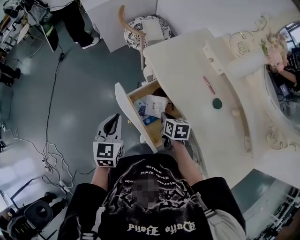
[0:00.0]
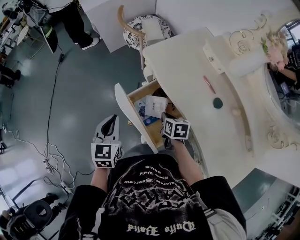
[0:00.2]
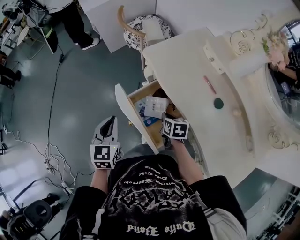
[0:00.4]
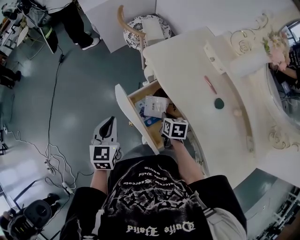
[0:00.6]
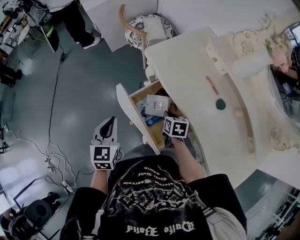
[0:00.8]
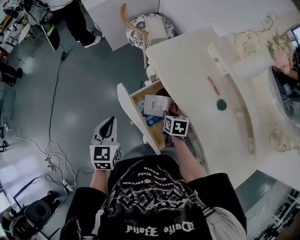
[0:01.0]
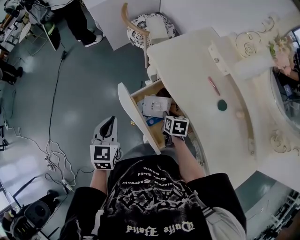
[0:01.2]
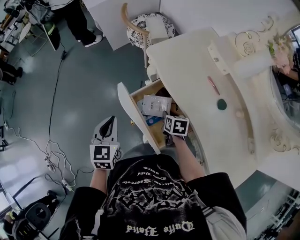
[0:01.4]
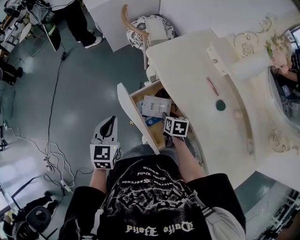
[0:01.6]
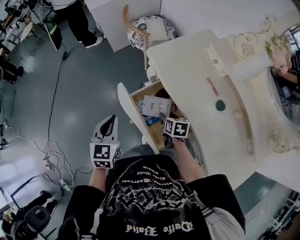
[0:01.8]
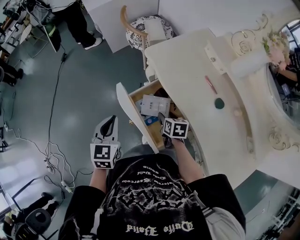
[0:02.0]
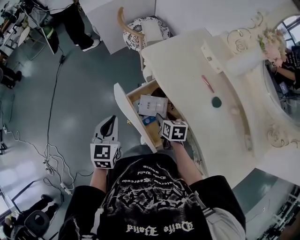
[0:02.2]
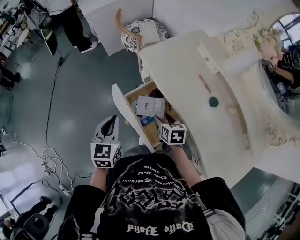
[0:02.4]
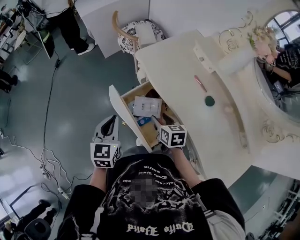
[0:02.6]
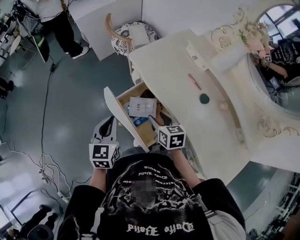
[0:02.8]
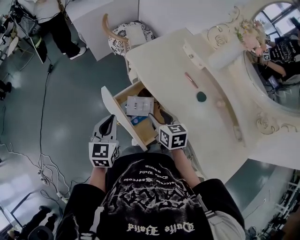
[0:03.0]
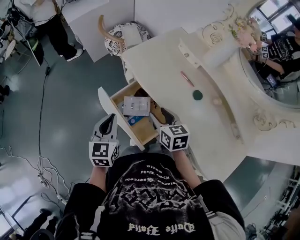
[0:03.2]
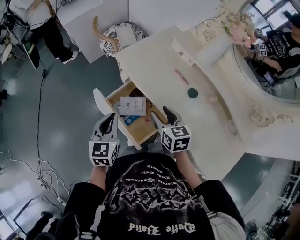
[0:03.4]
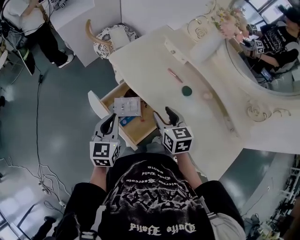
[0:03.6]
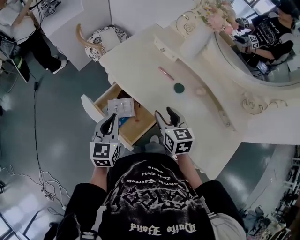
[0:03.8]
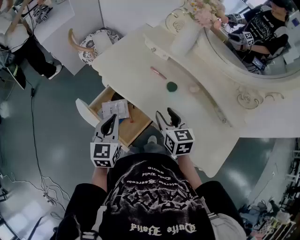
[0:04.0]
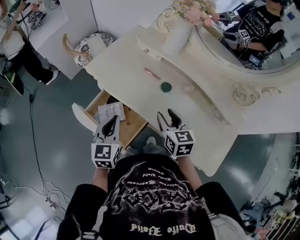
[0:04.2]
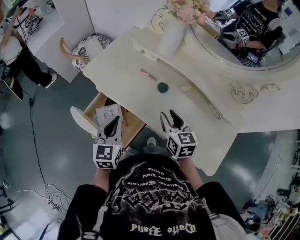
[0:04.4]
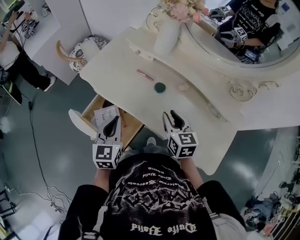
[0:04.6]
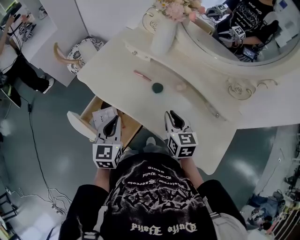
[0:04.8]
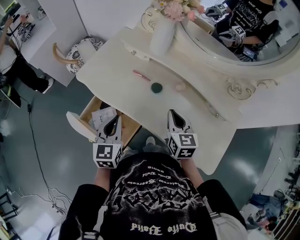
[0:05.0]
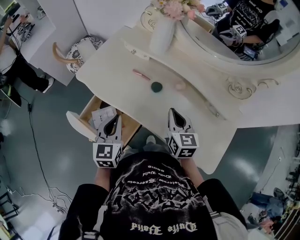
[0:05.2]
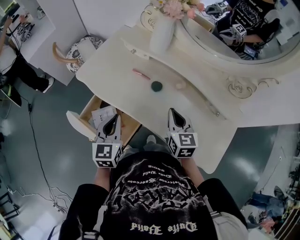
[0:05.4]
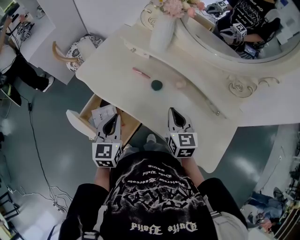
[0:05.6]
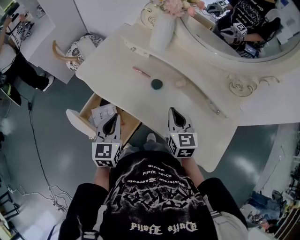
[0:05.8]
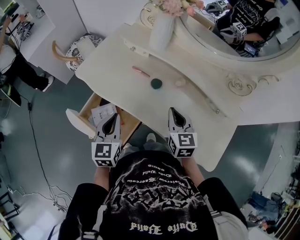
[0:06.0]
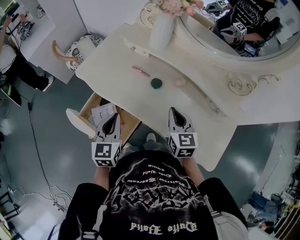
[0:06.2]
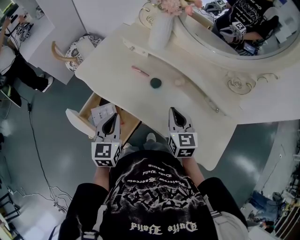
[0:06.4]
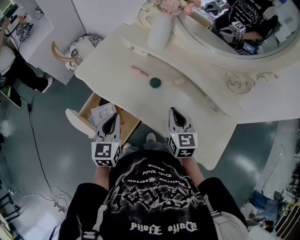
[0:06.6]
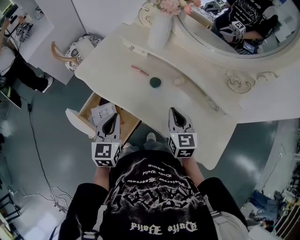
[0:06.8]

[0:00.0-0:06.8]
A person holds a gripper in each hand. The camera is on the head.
0:00.0 to 0:01.4: The right gripper ends up about 5 cm from where it was, and opens.
0:01.4 to 0:02.8: The left gripper goes roughly 5 cm to the right. The right gripper shifts roughly 10 cm upward, and opens.
0:02.8 to 0:04.0: The left gripper travels to the right by about 15 cm; the right gripper goes roughly 20 cm to the right and upward, and changes its angle by about 20 degrees.
0:04.0 to 0:05.4: Both grippers travel together to the right, approximately 10 cm. The right gripper closes up.
0:05.4 to 0:06.8: The grippers move only a little.

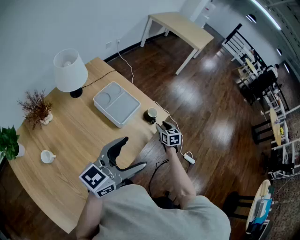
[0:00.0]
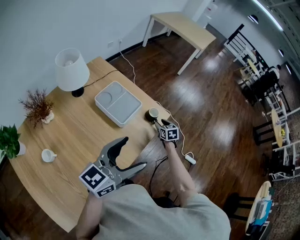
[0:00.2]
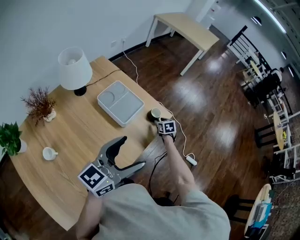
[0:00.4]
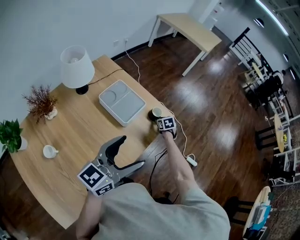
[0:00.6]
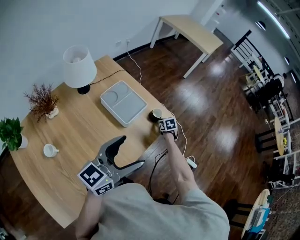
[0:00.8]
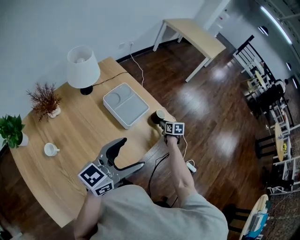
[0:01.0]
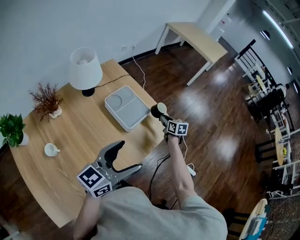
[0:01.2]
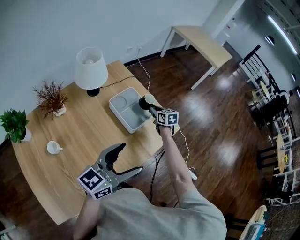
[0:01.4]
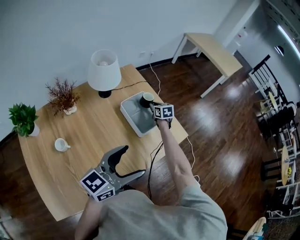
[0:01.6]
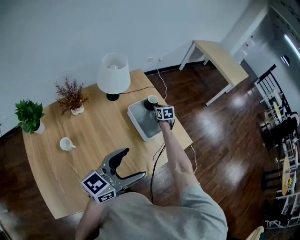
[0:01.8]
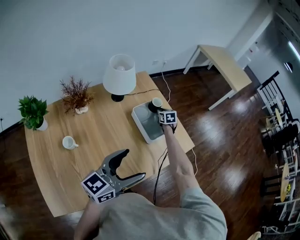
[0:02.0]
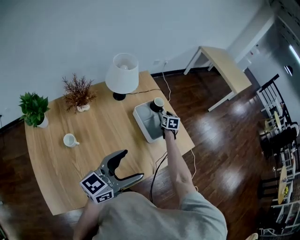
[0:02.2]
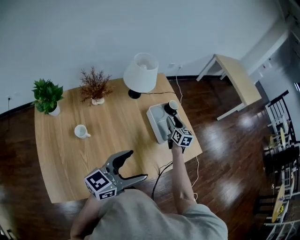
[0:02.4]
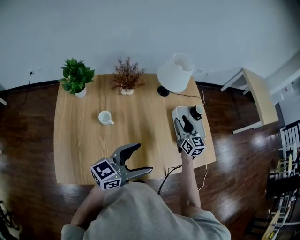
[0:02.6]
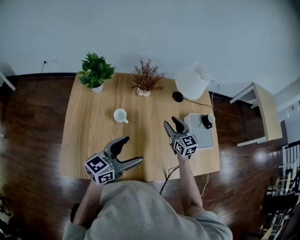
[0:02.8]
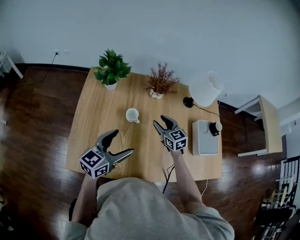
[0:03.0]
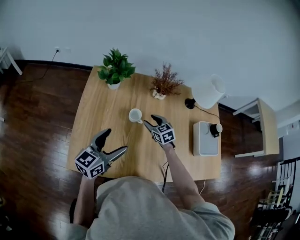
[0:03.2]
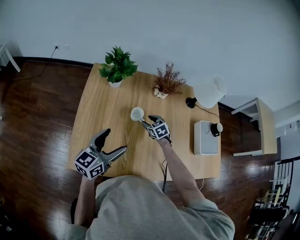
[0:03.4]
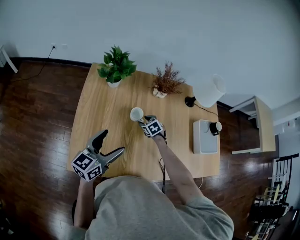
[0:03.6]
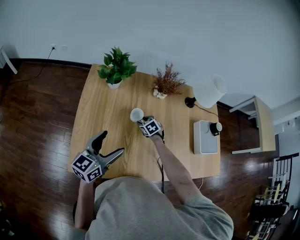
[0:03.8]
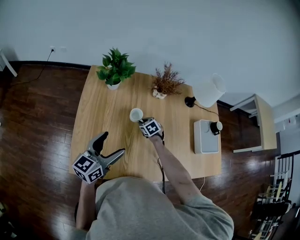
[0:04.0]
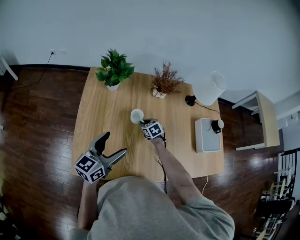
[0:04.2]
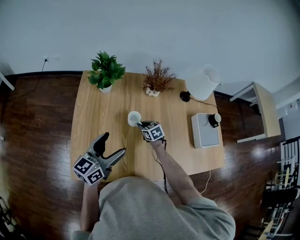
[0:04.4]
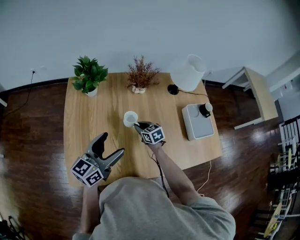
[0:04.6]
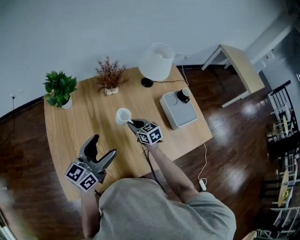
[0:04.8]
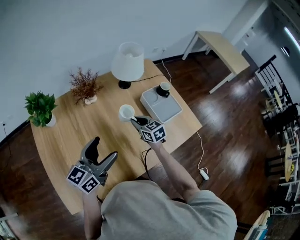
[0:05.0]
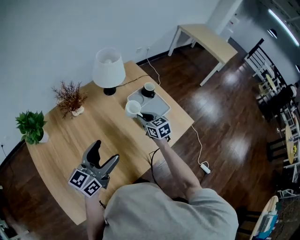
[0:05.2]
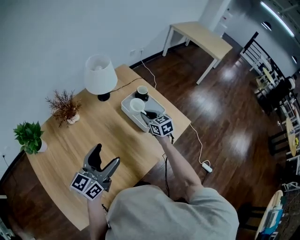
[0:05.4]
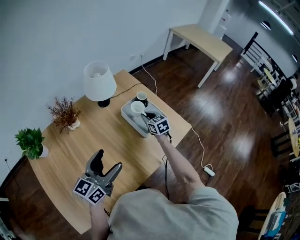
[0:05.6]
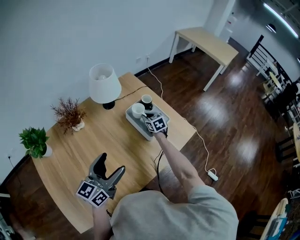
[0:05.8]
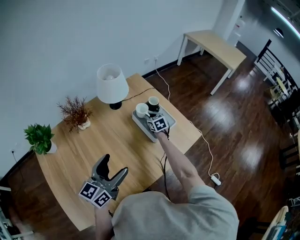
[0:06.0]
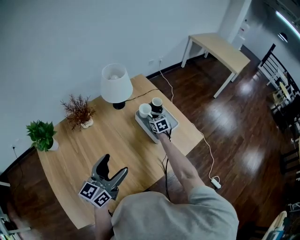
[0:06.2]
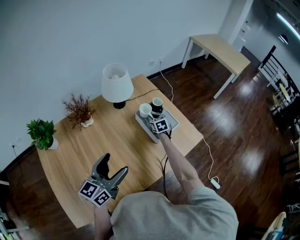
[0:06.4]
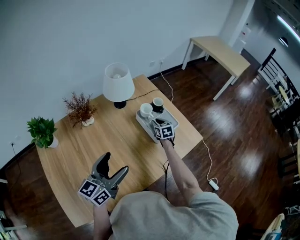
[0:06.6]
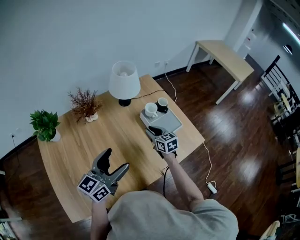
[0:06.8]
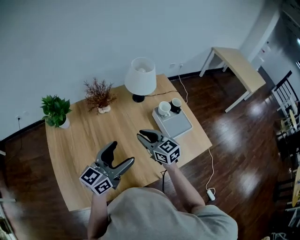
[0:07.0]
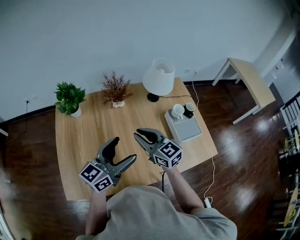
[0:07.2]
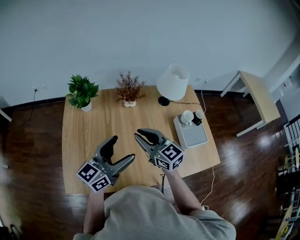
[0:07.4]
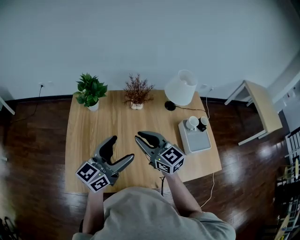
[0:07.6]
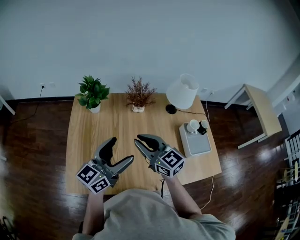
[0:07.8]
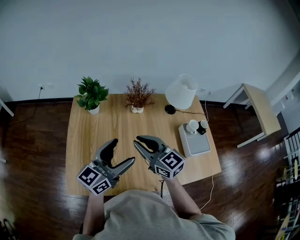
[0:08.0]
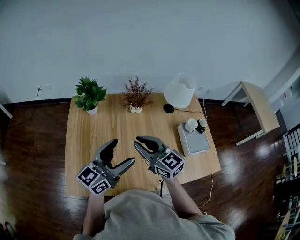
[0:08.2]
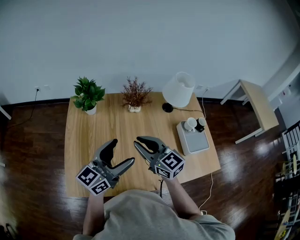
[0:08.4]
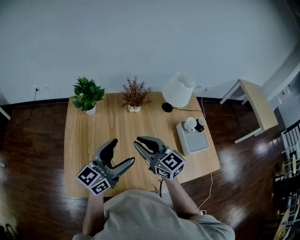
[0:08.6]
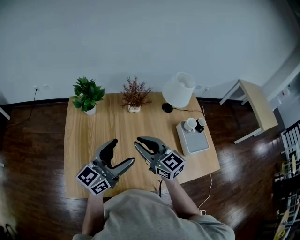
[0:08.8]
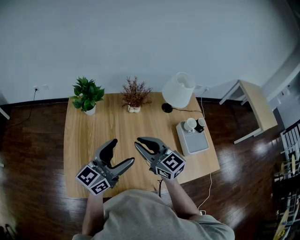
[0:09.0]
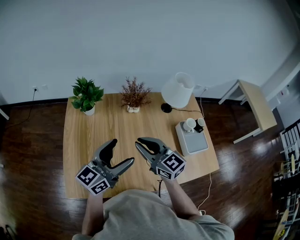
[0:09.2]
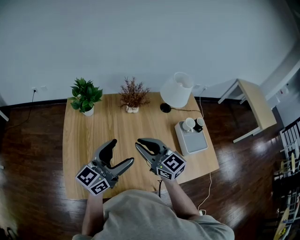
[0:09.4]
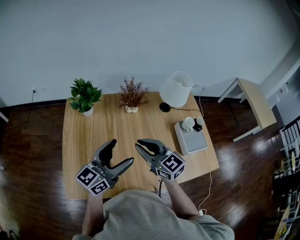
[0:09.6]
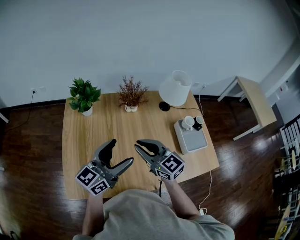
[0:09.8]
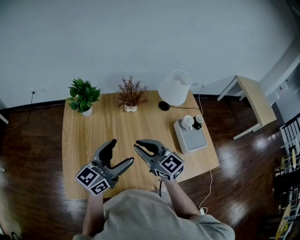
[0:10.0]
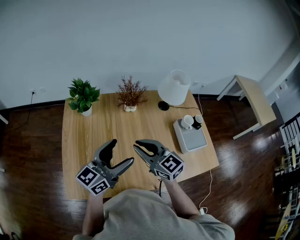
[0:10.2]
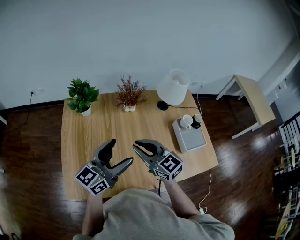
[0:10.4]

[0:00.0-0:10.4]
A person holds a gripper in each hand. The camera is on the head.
0:00.0 to 0:01.4: The right gripper travels to the left and forward by roughly 20 cm, swivels approximately 20 degrees, and closes its fingers.
0:01.4 to 0:03.0: The left gripper ends up about 40 cm from where it was, and changes its angle by roughly 50 degrees; the right gripper swings up and down, some 15 cm each way, with 2 reversals, rotates roughly 60 degrees, and opens up.
0:03.0 to 0:04.4: The left gripper shifts roughly 5 cm to the left, while the right gripper travels downward and to the left by approximately 15 cm, turns by about 20 degrees, and closes its fingers.
0:04.4 to 0:06.0: The left gripper changes place by some 30 cm, and swivels about 30 degrees; the right gripper moves some 50 cm, and turns by approximately 40 degrees.
0:06.0 to 0:07.4: The right gripper shifts by approximately 50 cm, and turns by roughly 60 degrees. Meanwhile the left gripper ends up roughly 15 cm from where it was.
0:07.4 to 0:10.4: The grippers stay close to where they were, moving slightly.

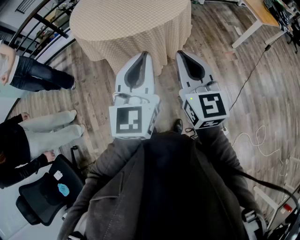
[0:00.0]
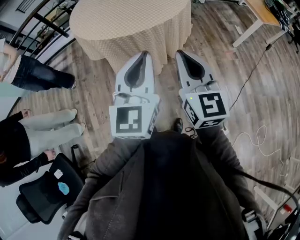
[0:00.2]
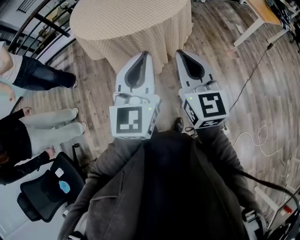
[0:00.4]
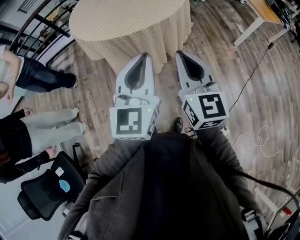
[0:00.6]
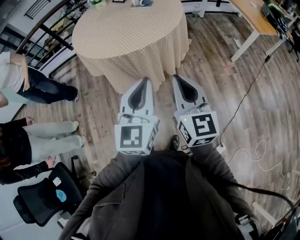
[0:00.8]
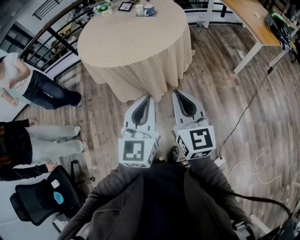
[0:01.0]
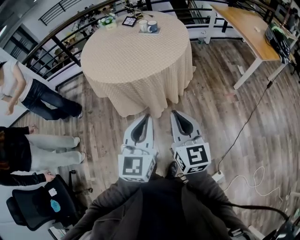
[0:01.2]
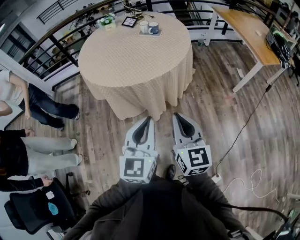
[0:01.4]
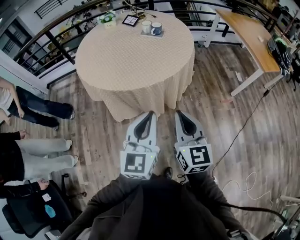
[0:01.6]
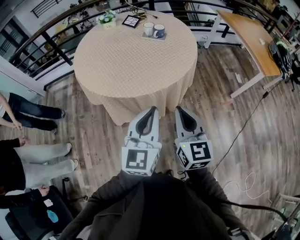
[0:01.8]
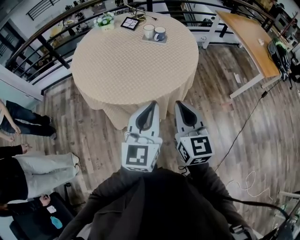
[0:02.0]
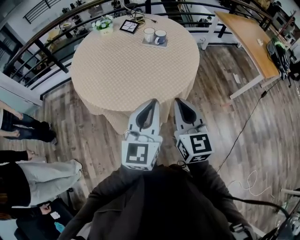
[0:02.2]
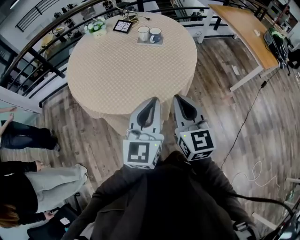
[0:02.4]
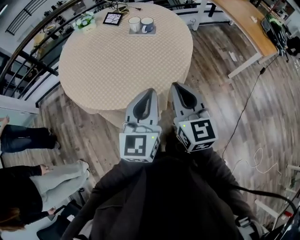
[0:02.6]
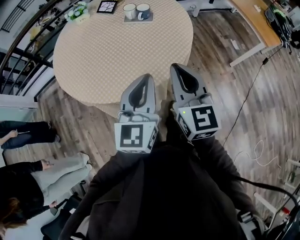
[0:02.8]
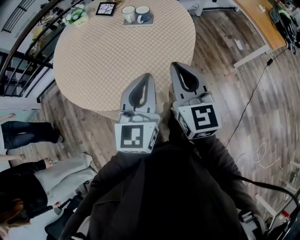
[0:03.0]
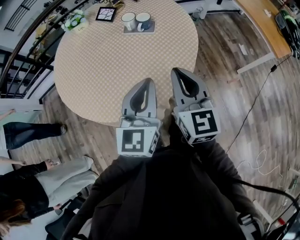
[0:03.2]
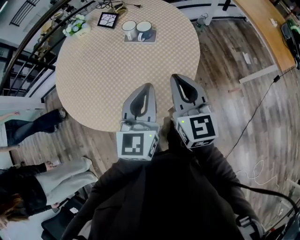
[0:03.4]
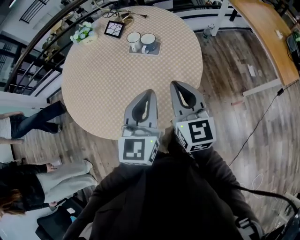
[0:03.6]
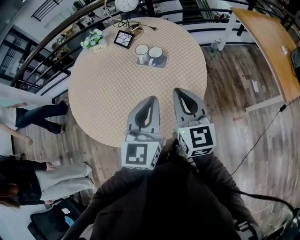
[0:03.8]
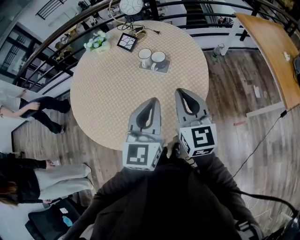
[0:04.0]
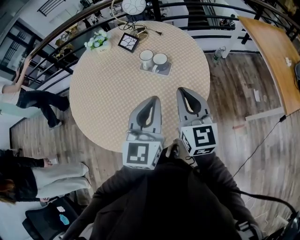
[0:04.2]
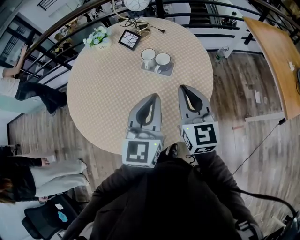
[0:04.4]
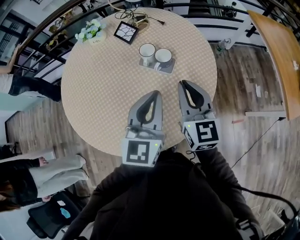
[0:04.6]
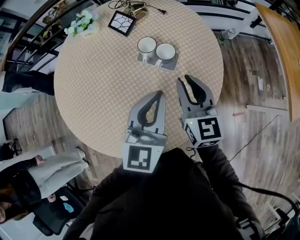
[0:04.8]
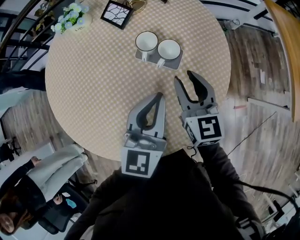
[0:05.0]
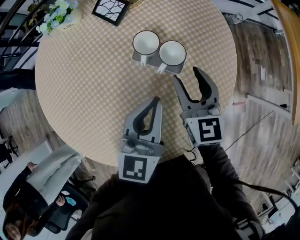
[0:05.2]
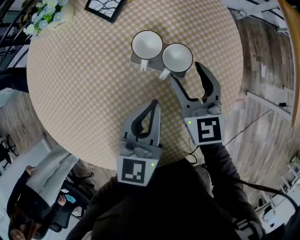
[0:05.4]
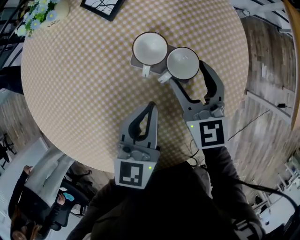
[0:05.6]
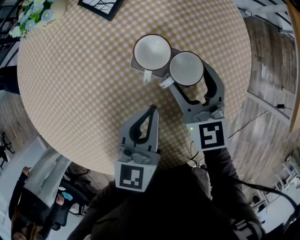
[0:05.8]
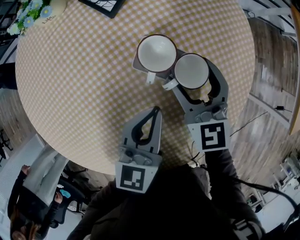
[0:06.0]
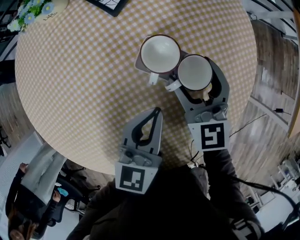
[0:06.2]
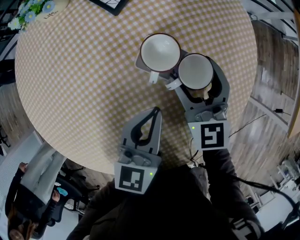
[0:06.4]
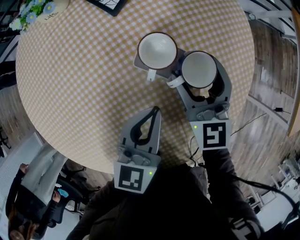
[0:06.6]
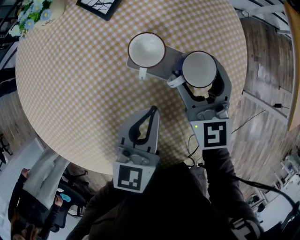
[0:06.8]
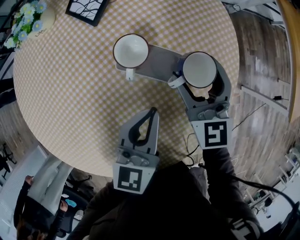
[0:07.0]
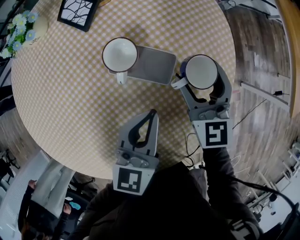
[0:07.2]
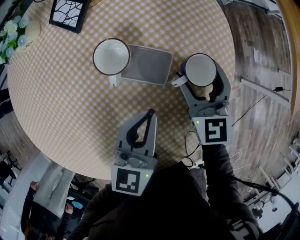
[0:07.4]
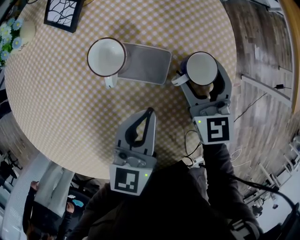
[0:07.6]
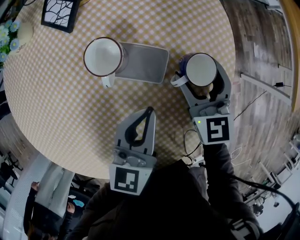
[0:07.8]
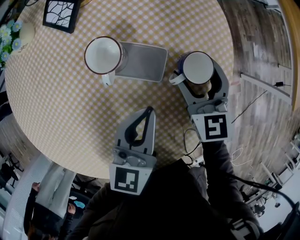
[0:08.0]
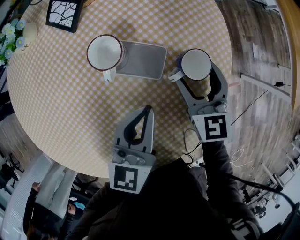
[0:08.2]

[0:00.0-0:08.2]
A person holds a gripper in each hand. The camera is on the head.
0:00.0 to 0:01.6: The two grippers go some 15 cm forward and to the right.
0:01.6 to 0:03.2: Both grippers travel together forward, approximately 30 cm.
0:03.2 to 0:05.0: Both grippers travel together forward, approximately 30 cm.
0:05.0 to 0:06.6: The left gripper heads downward and forward, covering some 15 cm. The right gripper goes approximately 15 cm forward and downward, and opens up.
0:06.6 to 0:08.2: The right gripper heads to the right, covering approximately 10 cm. The left gripper heads to the right, covering approximately 5 cm.
